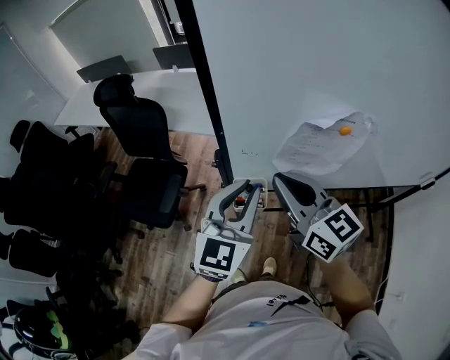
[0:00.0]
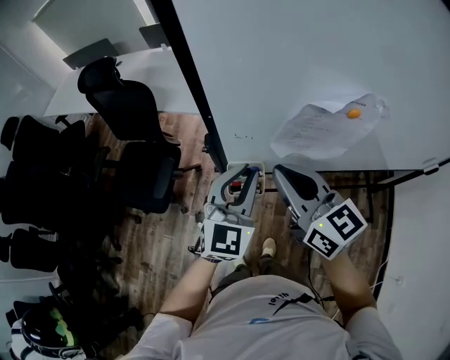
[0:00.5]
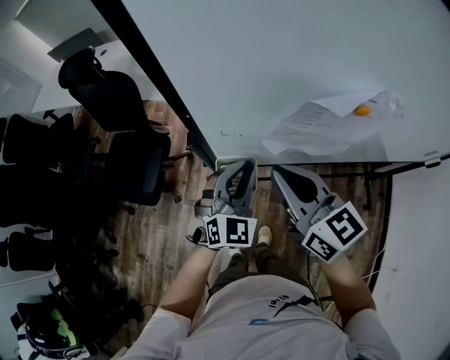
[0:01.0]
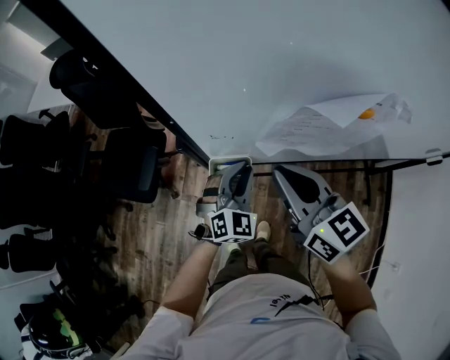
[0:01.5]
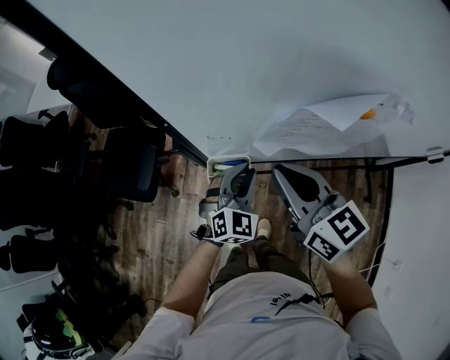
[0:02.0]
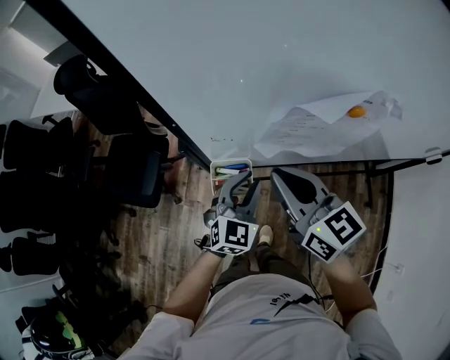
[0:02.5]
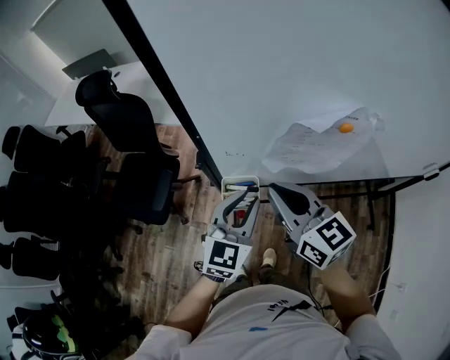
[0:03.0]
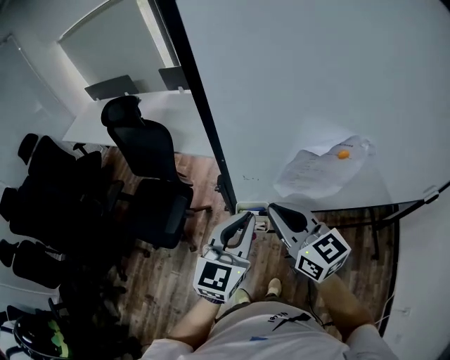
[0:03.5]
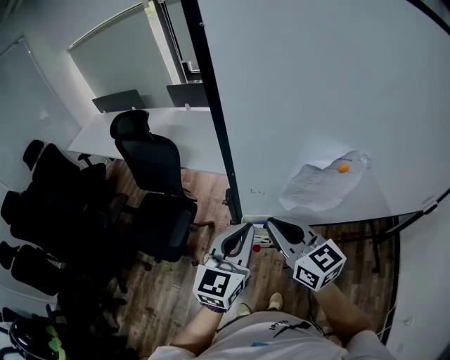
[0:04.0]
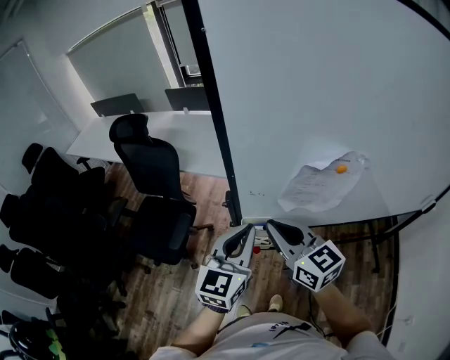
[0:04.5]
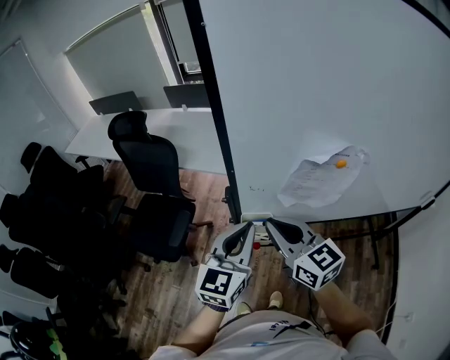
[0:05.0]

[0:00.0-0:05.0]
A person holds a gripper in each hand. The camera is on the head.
0:00.0 to 0:02.5: The left gripper moves downward, some 20 cm, and turns by roughly 20 degrees; the right gripper shifts about 10 cm downward.
0:02.5 to 0:05.0: The left gripper is displaced upward and to the left by approximately 20 cm, turns by about 30 degrees, and closes. The right gripper moves to the left and upward, about 10 cm.

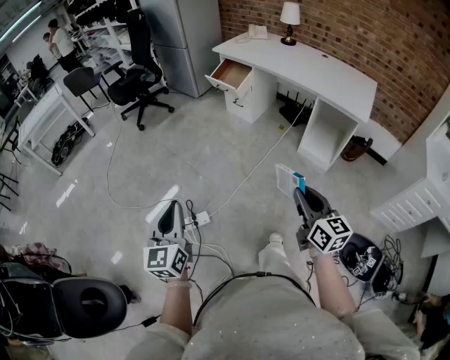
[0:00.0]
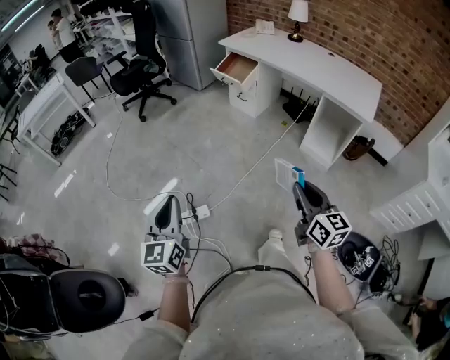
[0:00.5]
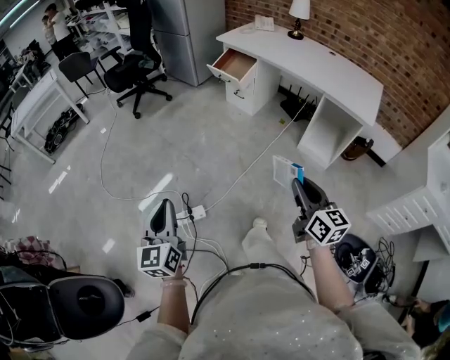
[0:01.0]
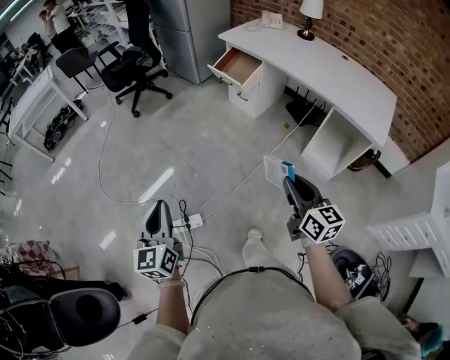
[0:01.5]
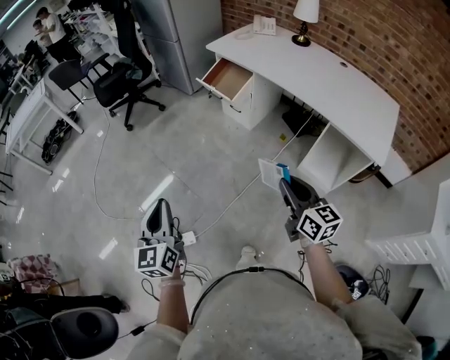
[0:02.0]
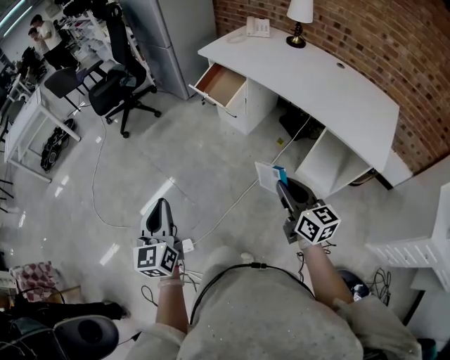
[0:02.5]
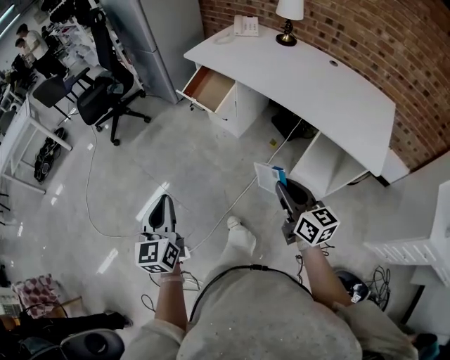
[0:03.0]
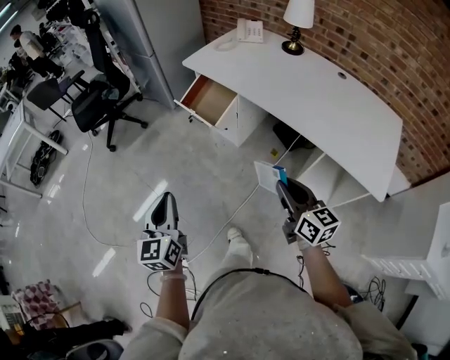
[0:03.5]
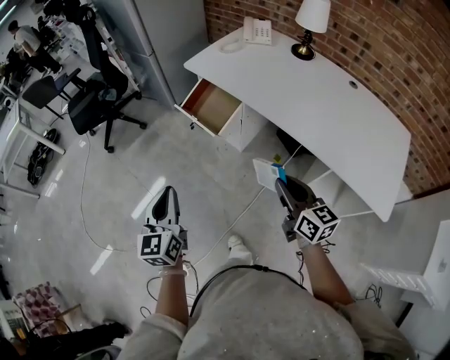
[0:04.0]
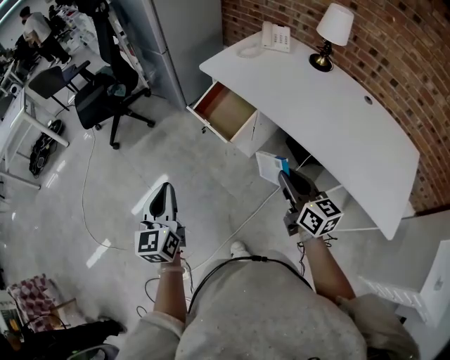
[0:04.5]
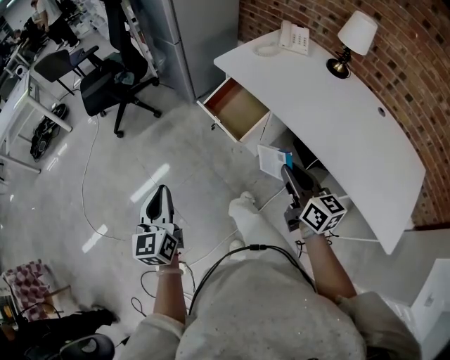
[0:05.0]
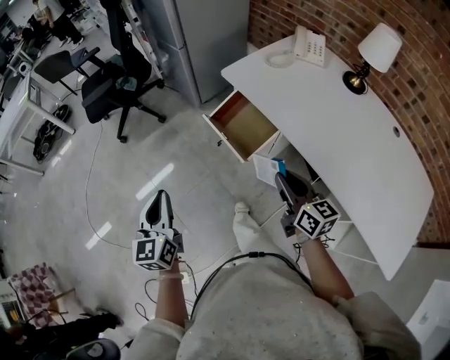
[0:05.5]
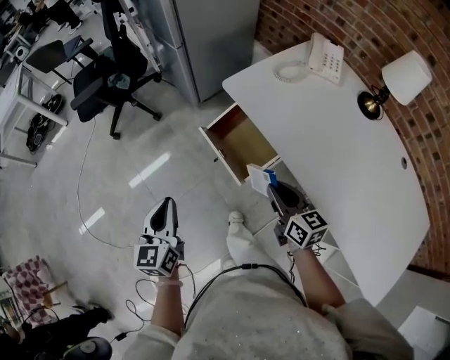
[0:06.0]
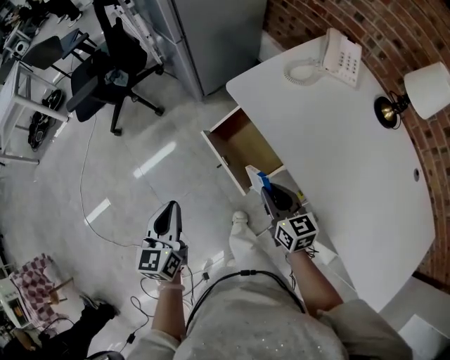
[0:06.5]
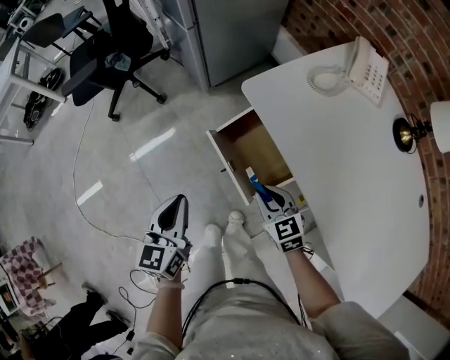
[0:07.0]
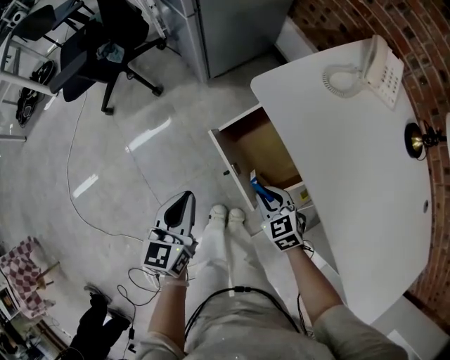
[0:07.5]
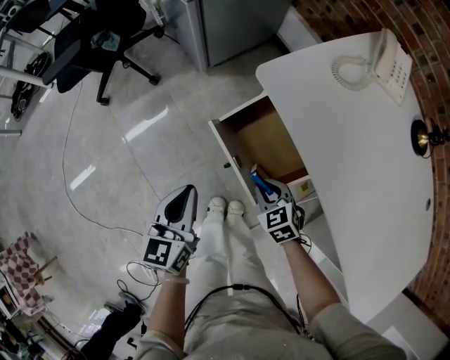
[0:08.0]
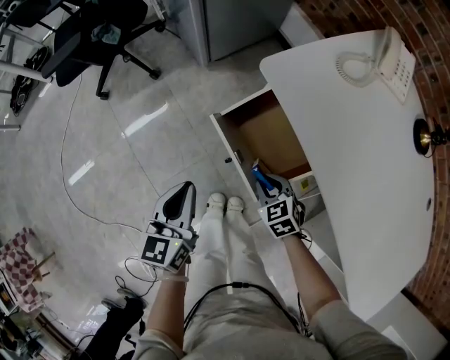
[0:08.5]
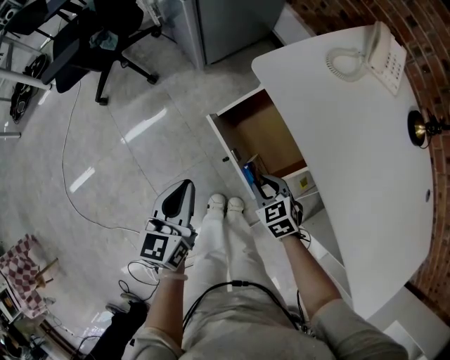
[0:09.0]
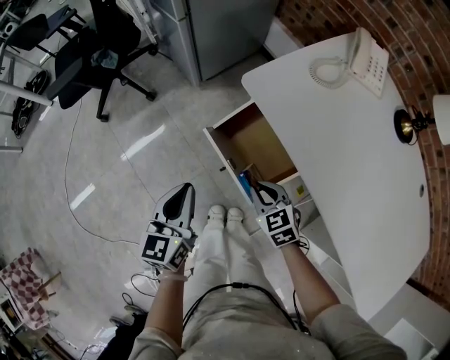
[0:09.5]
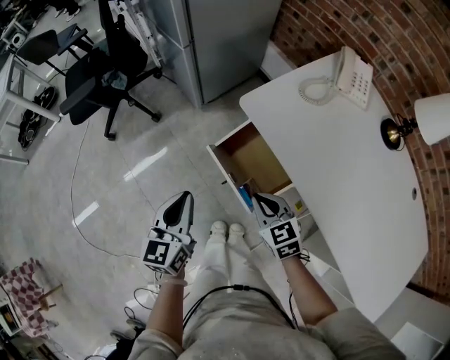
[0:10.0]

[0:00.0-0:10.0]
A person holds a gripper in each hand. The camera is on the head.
0:00.0 to 0:02.0: Both grippers travel together forward, about 25 cm.
0:02.0 to 0:04.0: The left gripper goes about 35 cm forward and to the right, while the right gripper moves forward, about 25 cm.
0:04.0 to 0:06.0: The grippers both shift forward by about 30 cm.
0:06.0 to 0:08.0: The two grippers go approximately 20 cm downward and forward. The right gripper tilts its fingers about 30 degrees downward.
0:08.0 to 0:10.0: The right gripper moves upward, roughly 15 cm. The left gripper moves upward, some 10 cm.

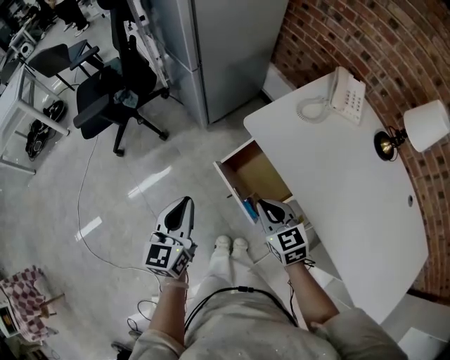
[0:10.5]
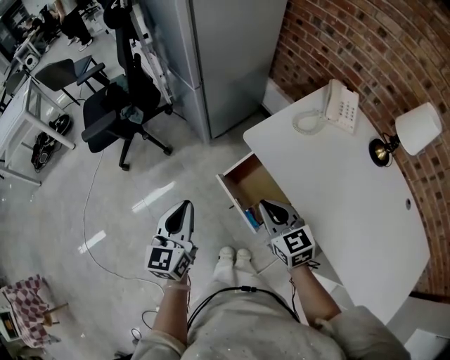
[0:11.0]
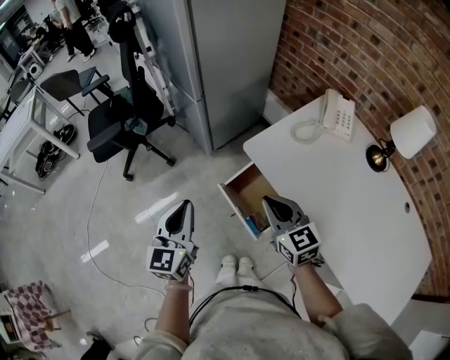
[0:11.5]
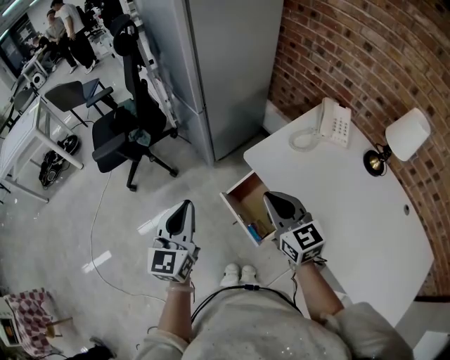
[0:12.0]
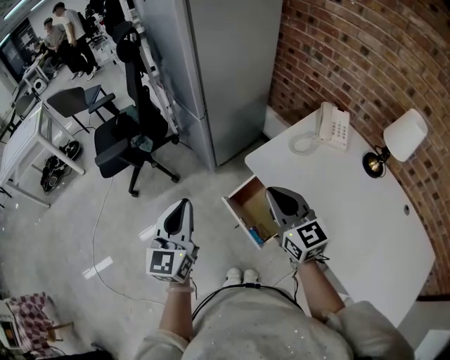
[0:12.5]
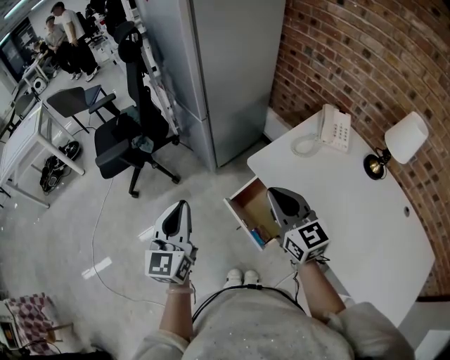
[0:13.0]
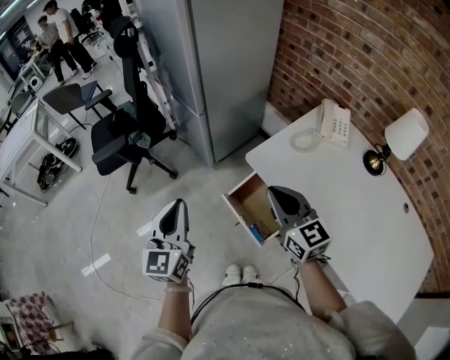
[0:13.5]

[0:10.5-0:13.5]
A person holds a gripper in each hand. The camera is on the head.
0:10.5 to 0:12.0: The two grippers go about 15 cm upward. The right gripper swivels about 20 degrees.
0:12.0 to 0:13.5: The grippers stay close to where they were, moving slightly.

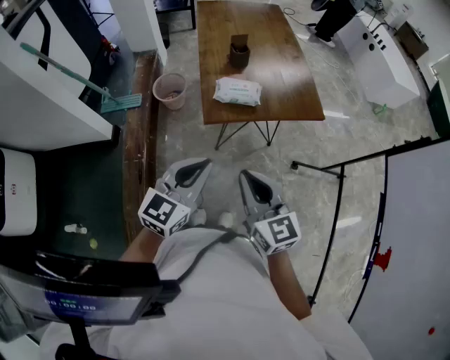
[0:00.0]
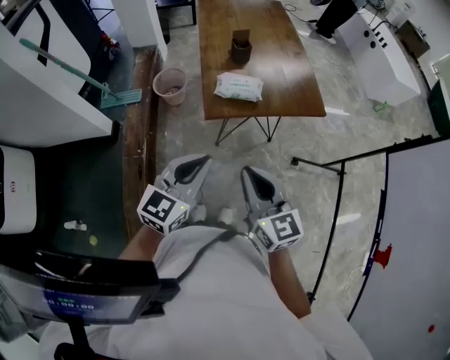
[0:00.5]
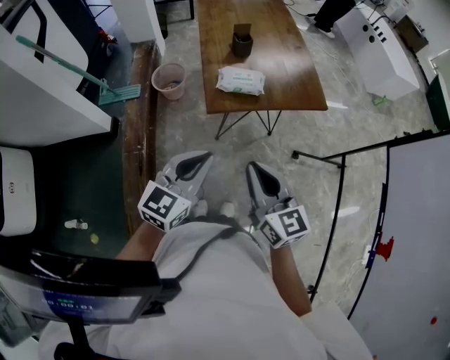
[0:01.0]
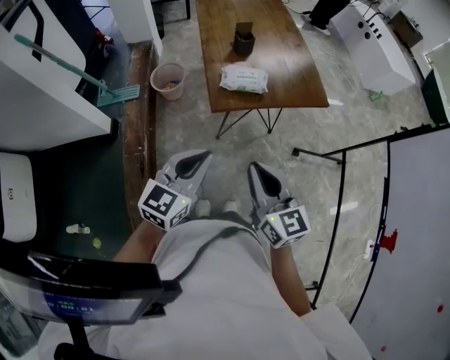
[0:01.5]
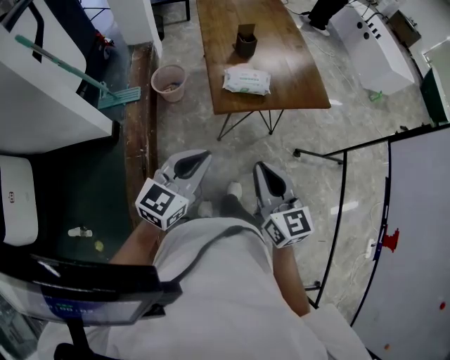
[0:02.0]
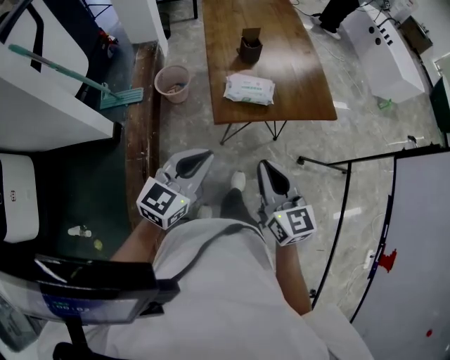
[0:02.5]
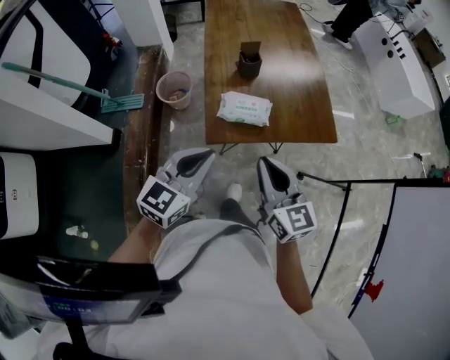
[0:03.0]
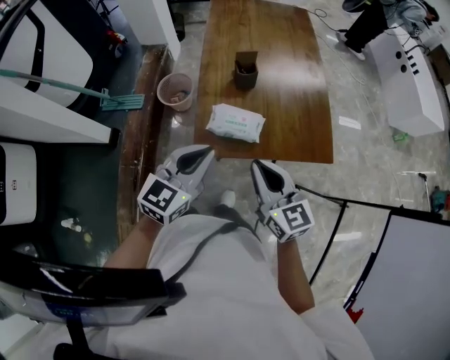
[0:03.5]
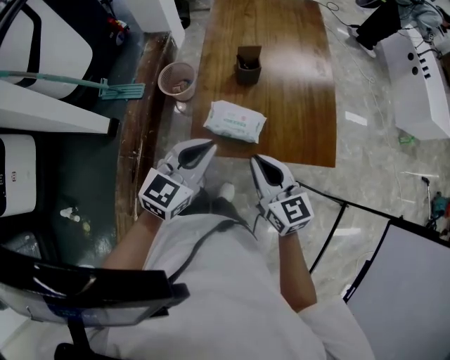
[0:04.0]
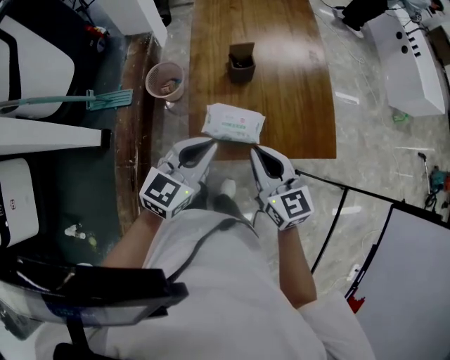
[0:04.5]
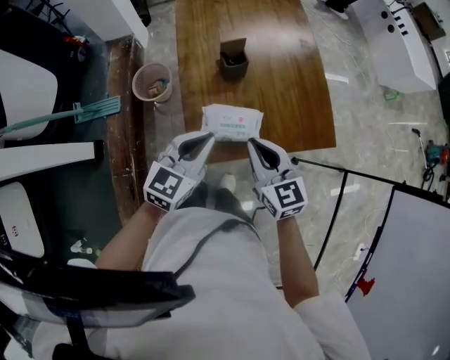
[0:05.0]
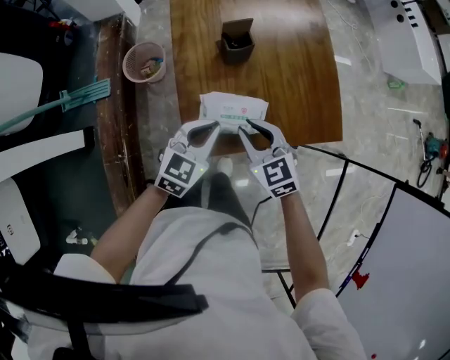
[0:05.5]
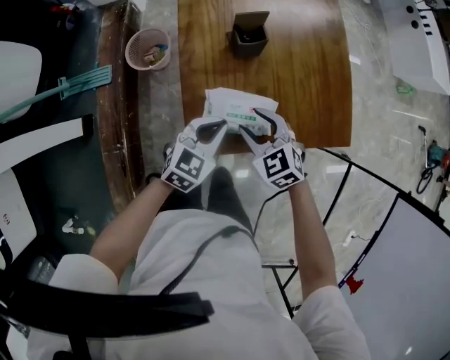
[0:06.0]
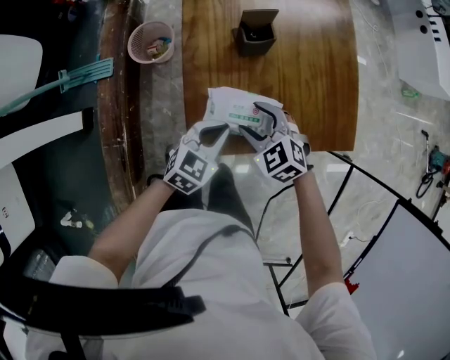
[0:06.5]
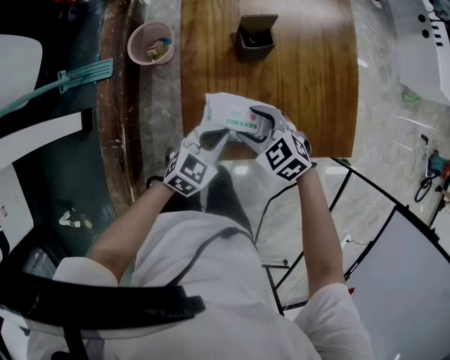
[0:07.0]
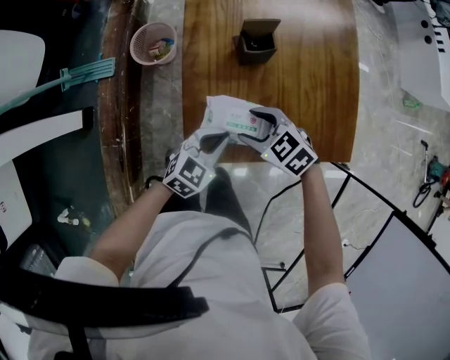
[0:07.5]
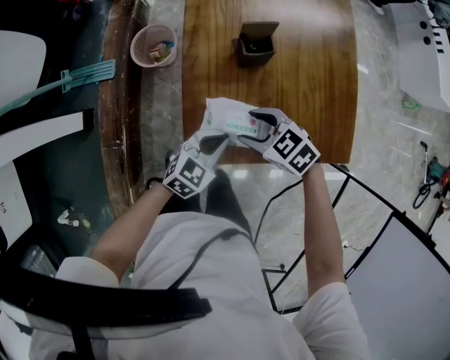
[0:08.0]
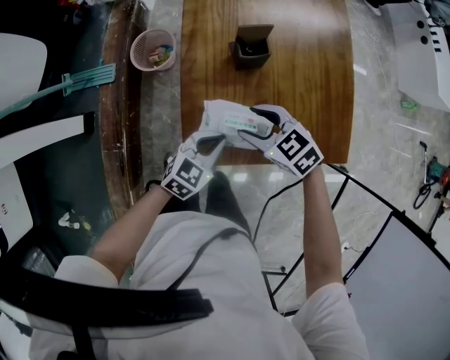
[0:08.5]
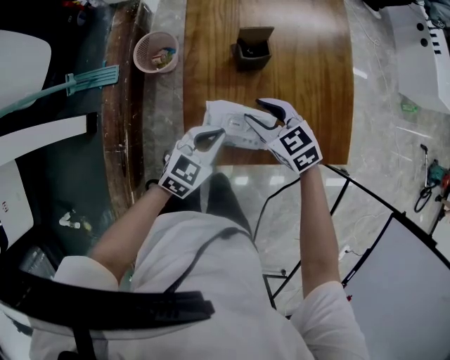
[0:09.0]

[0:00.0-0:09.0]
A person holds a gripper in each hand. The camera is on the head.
0:00.0 to 0:02.0: The left gripper moves to the left, roughly 5 cm.
0:02.0 to 0:04.5: Both grippers travel together forward, about 30 cm.
0:04.5 to 0:07.0: The left gripper heads downward, covering approximately 20 cm, and swivels roughly 20 degrees; the right gripper goes some 20 cm downward and forward, points its fingers some 40 degrees further downward, and opens.
0:07.0 to 0:09.0: The right gripper moves approximately 5 cm.
